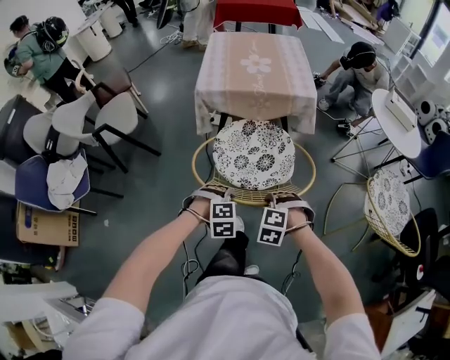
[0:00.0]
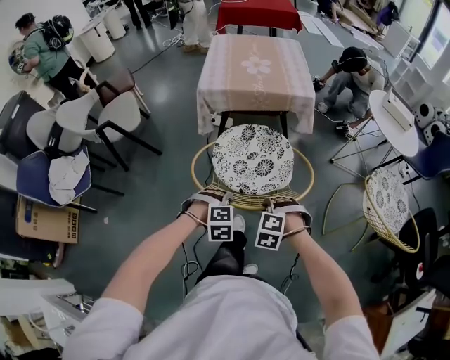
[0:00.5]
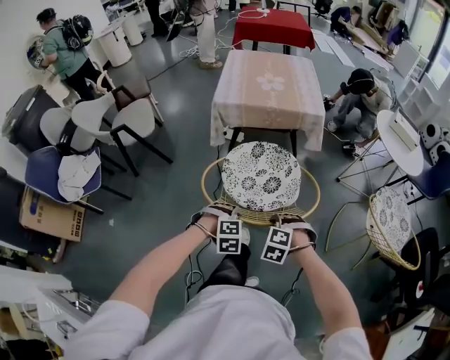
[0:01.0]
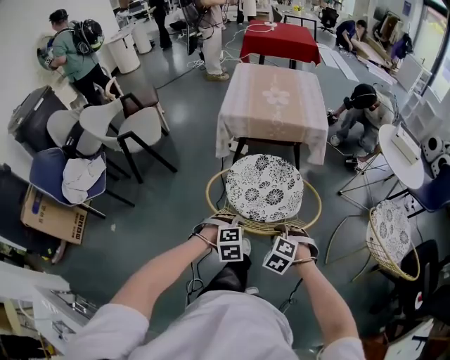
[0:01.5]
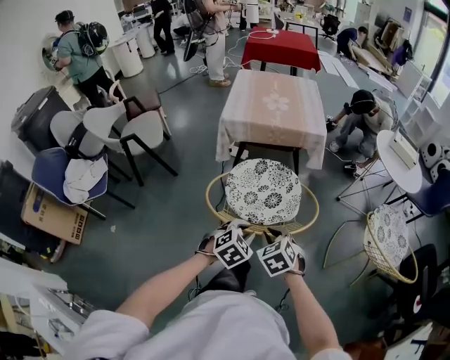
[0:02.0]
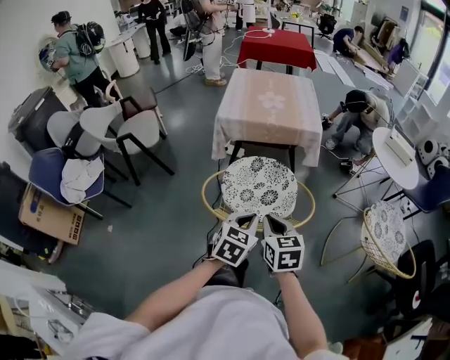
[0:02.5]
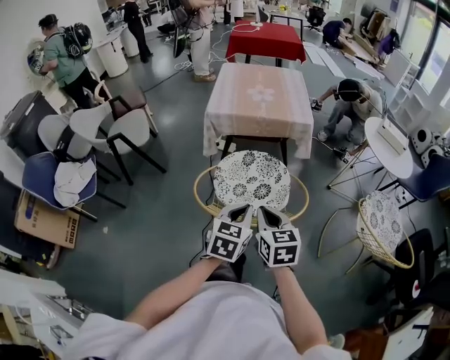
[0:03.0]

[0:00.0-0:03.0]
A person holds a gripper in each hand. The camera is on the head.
0:00.0 to 0:01.5: The two grippers go some 5 cm backward.
0:01.5 to 0:03.0: Both grippers travel together upward, about 15 cm. The left gripper twists approximately 60 degrees counterclockwise, seen from behind. The right gripper twists roughly 60 degrees clockwise, seen from behind, and closes its fingers.

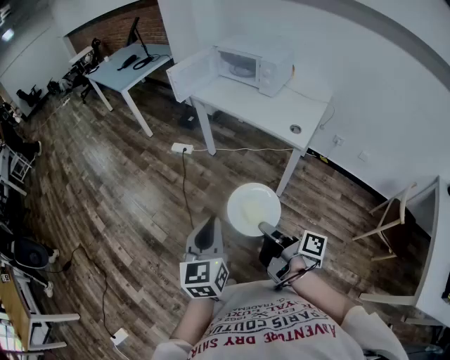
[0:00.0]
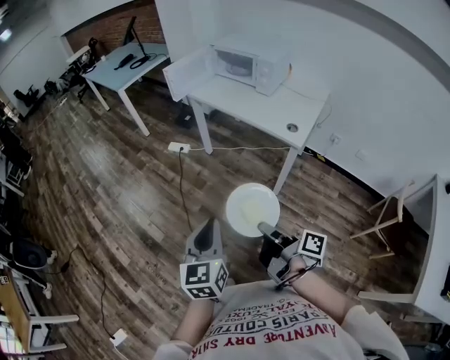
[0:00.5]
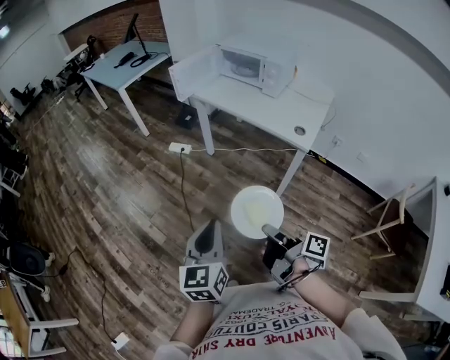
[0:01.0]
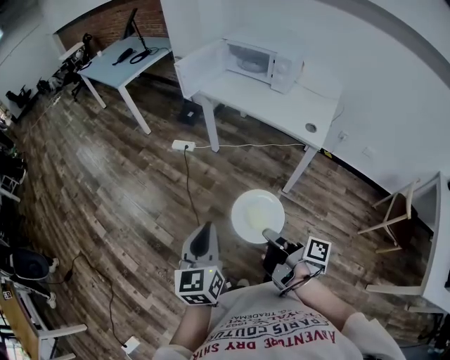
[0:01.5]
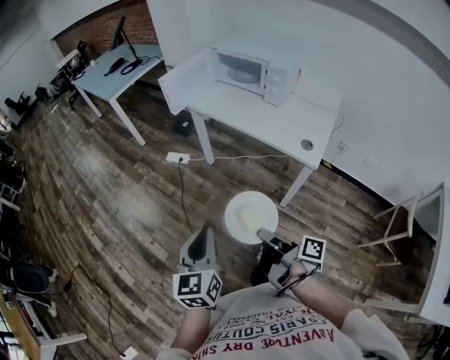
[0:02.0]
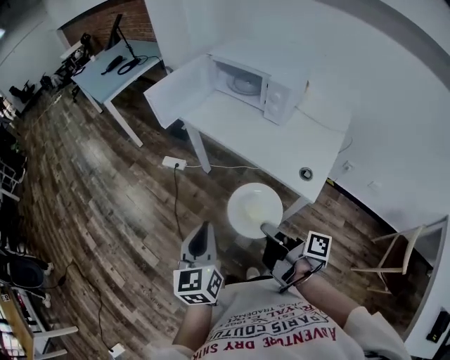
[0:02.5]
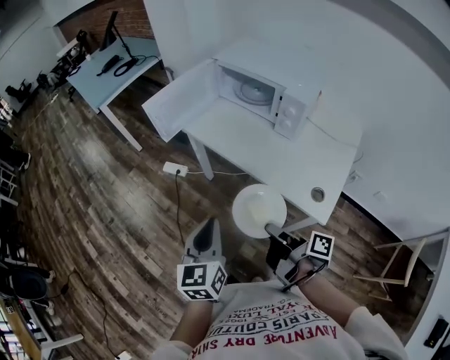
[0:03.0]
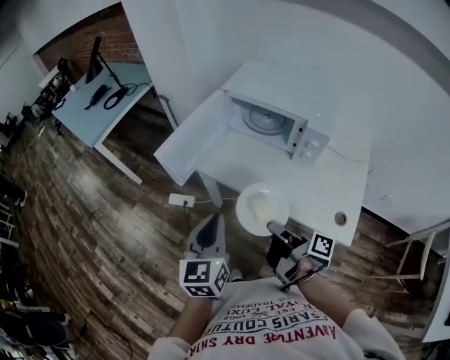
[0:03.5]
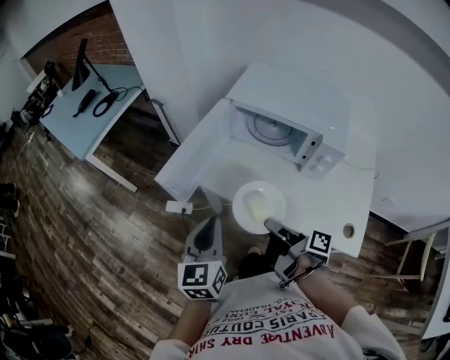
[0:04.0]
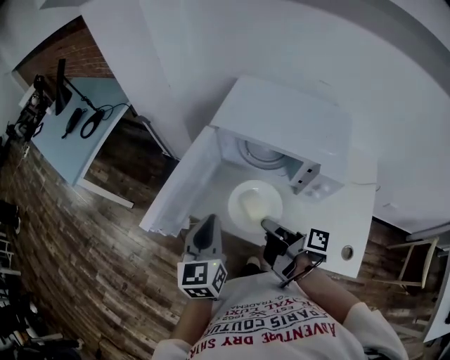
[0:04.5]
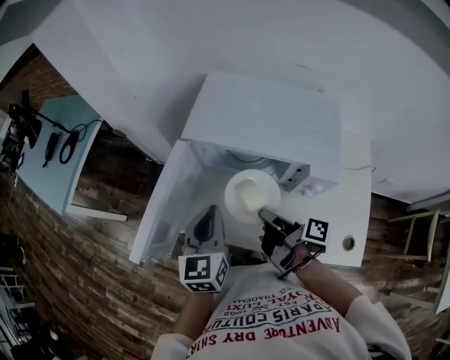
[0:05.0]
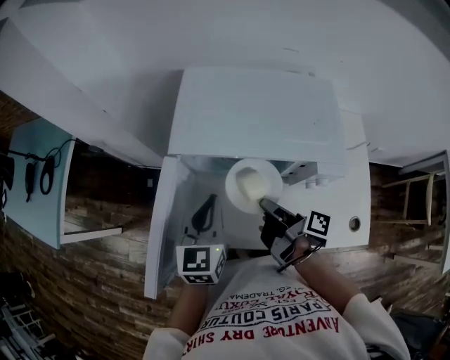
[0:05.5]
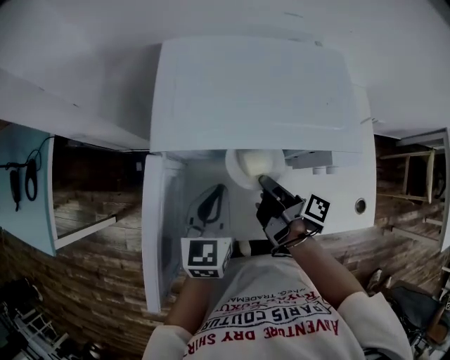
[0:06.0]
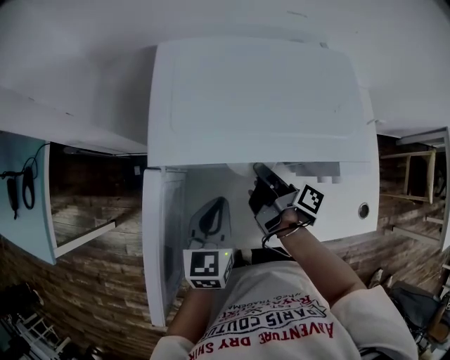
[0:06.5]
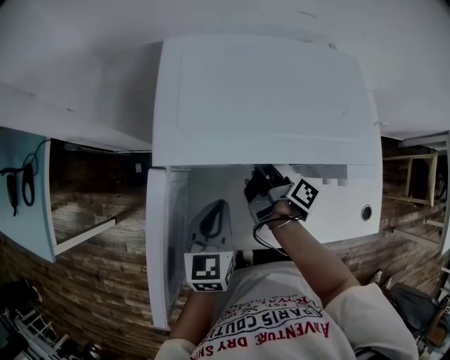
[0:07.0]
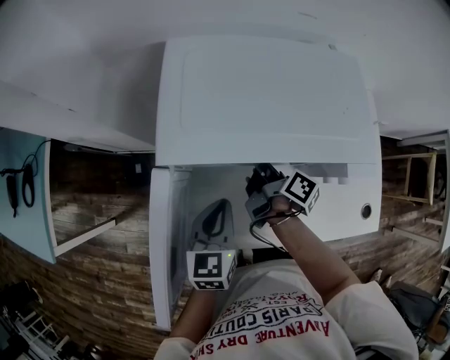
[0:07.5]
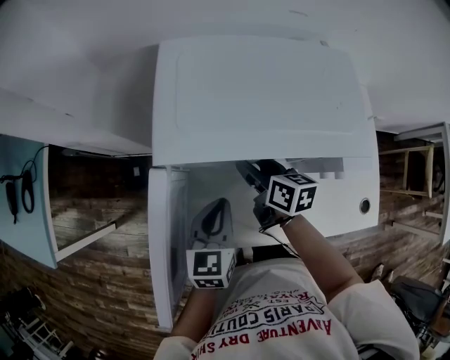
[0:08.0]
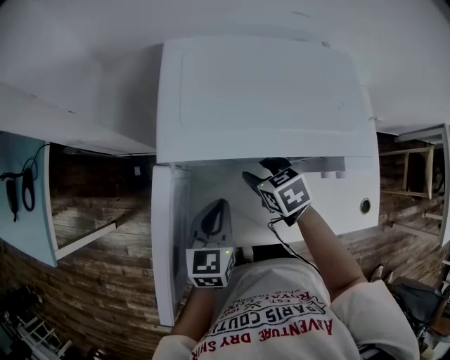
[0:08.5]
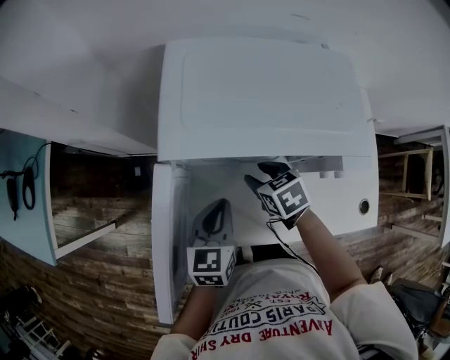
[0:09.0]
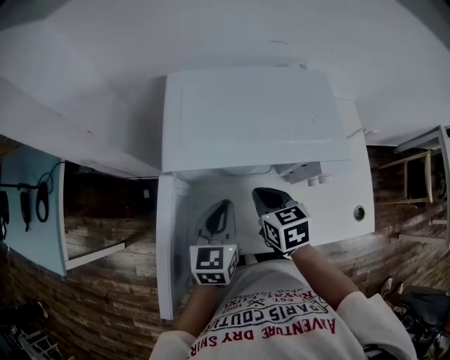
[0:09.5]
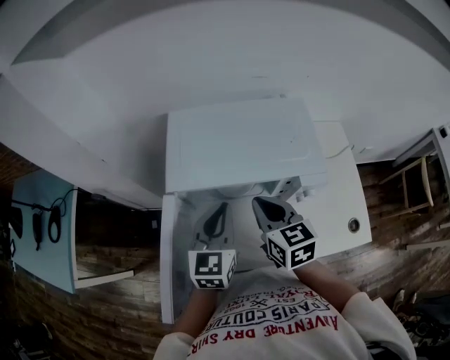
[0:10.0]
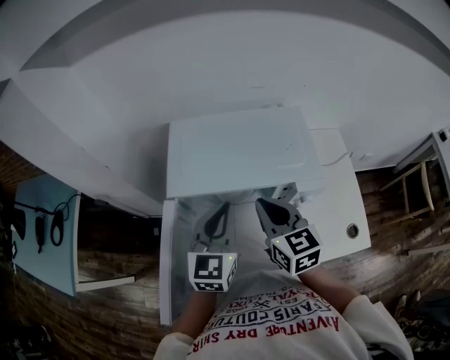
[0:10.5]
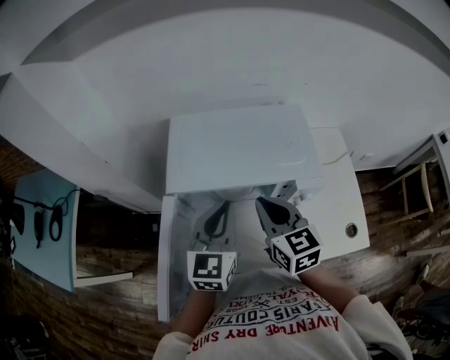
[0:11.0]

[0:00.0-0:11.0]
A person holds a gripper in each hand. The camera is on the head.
0:00.0 to 0:02.0: The left gripper ends up approximately 15 cm from where it was.
0:02.0 to 0:03.5: The left gripper moves about 40 cm.
0:03.5 to 0:05.5: The left gripper ends up approximately 35 cm from where it was, and turns by approximately 30 degrees.
0:05.5 to 0:07.5: The left gripper goes approximately 10 cm downward.
0:09.0 to 0:11.0: The left gripper heads upward, covering some 15 cm, and rotates roughly 20 degrees.

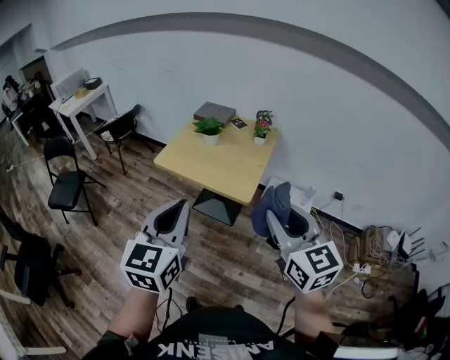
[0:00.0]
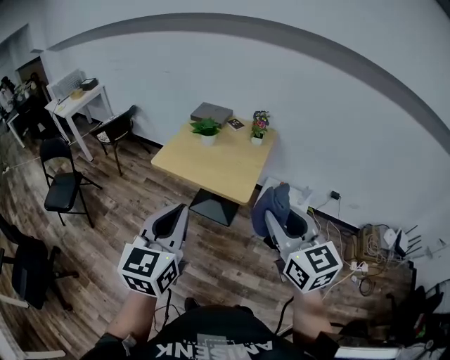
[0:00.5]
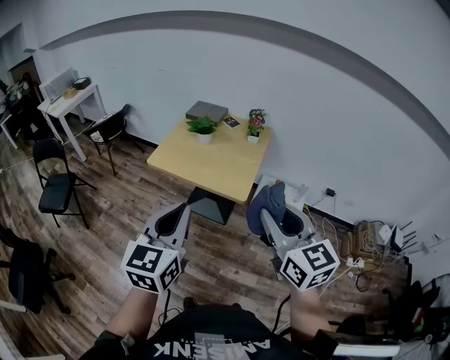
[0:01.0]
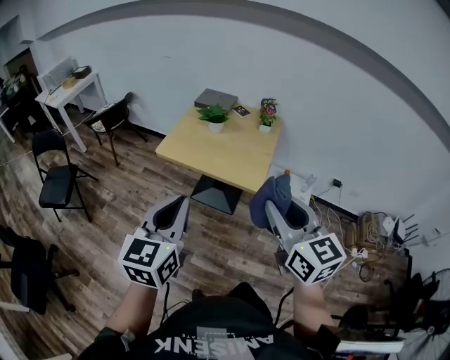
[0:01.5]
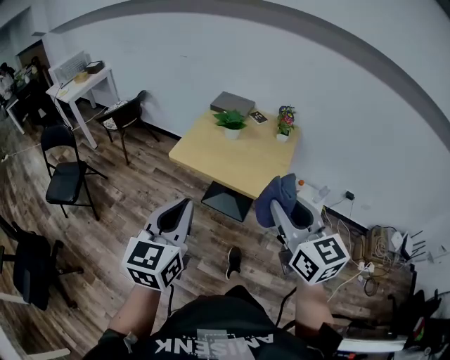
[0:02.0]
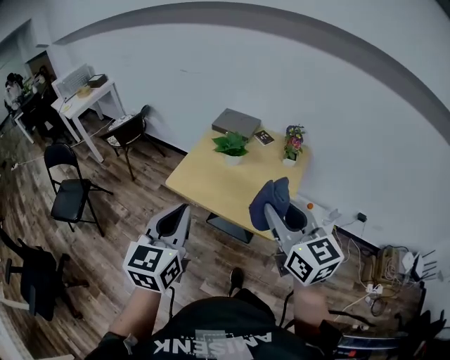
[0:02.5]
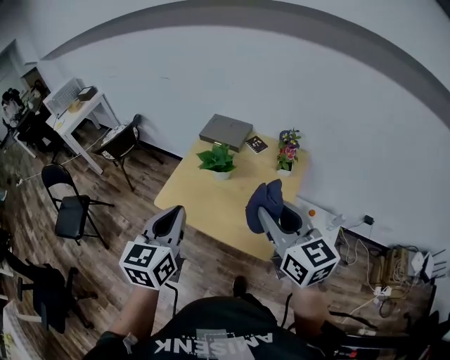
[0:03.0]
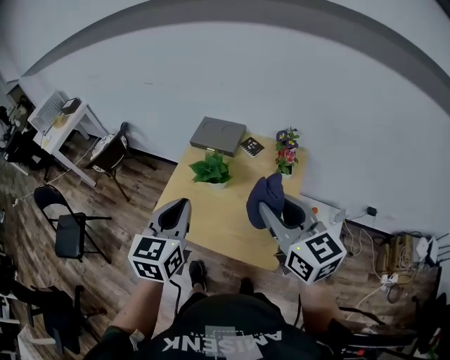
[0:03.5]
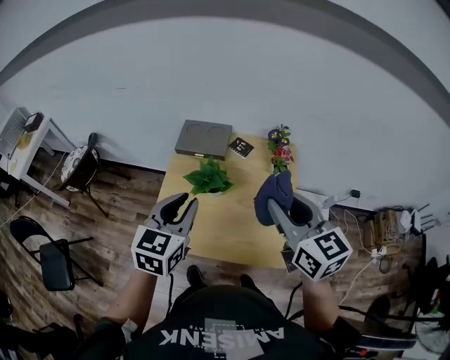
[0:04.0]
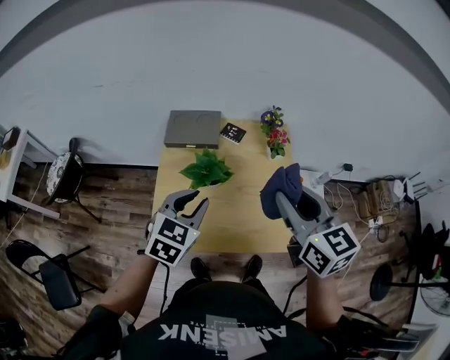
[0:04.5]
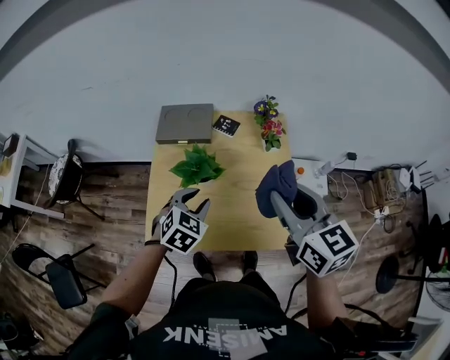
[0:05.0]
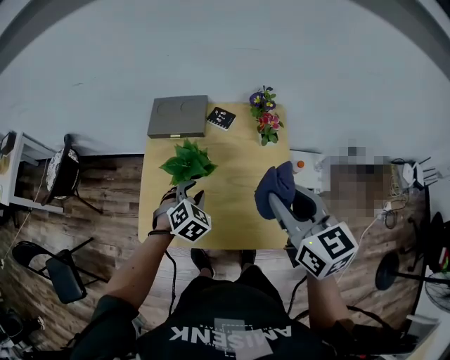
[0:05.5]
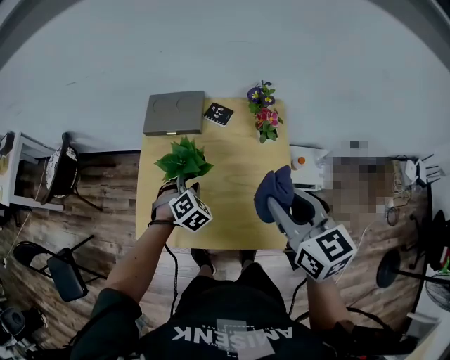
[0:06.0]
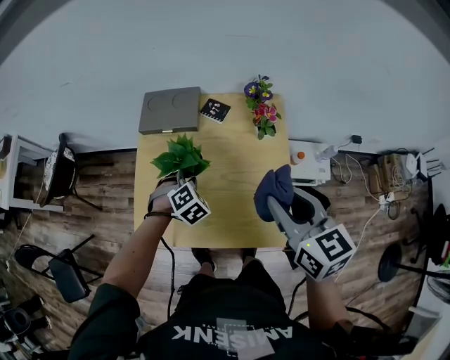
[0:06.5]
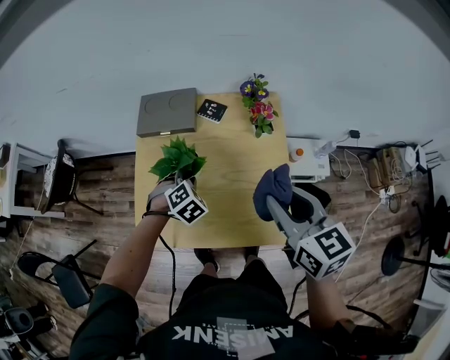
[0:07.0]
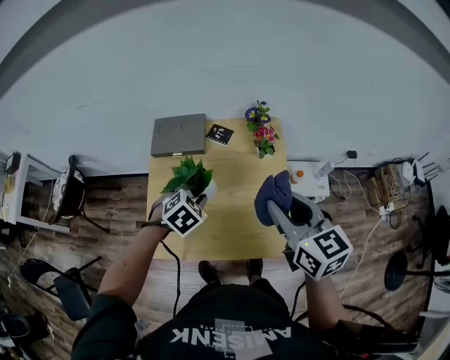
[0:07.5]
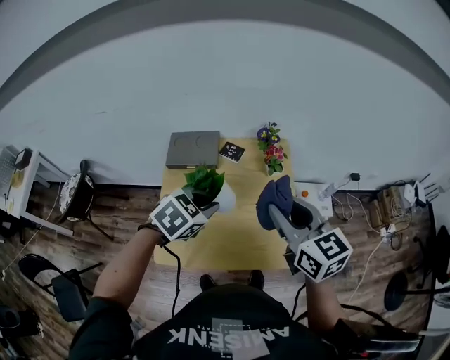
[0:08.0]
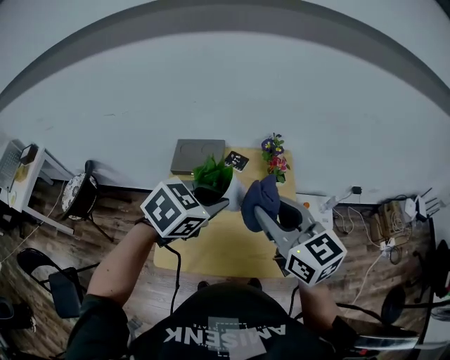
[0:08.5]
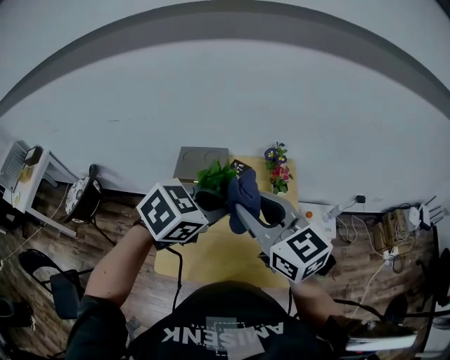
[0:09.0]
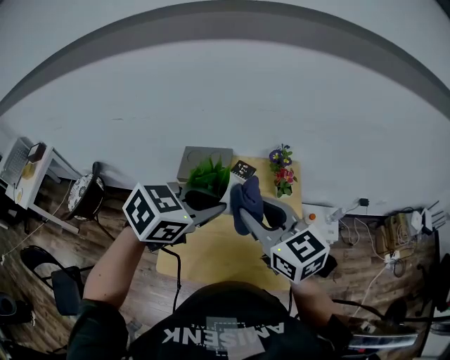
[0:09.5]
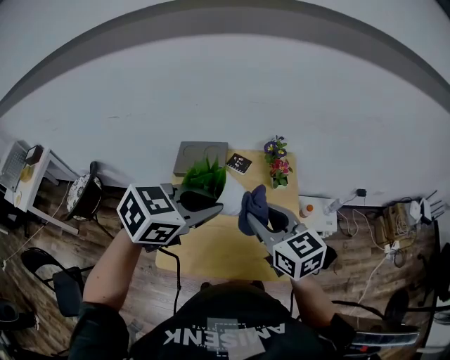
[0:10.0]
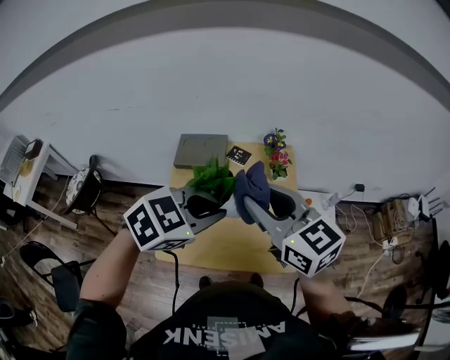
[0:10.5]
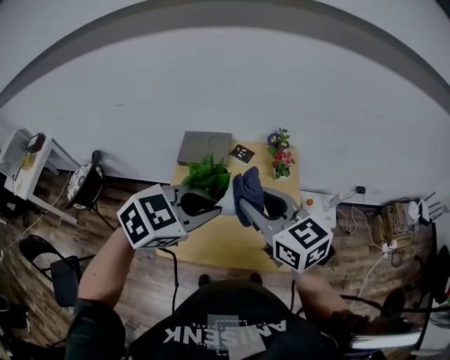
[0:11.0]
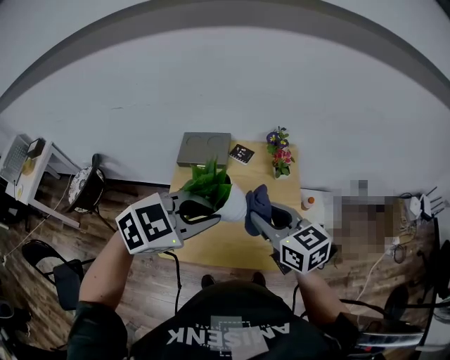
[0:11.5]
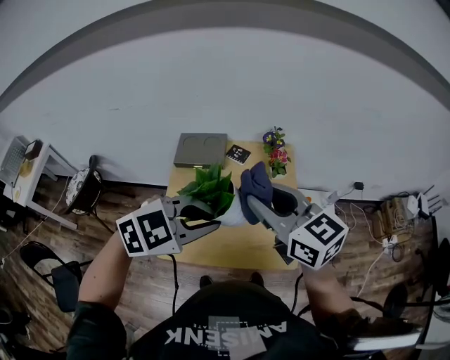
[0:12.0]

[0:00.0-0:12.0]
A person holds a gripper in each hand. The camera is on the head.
0:00.0 to 0:02.0: The right gripper goes roughly 15 cm to the left and forward; the left gripper heads to the left, forward and downward, covering about 15 cm.
0:02.0 to 0:04.0: Both grippers travel together forward, approximately 40 cm. The left gripper turns by approximately 20 degrees.
0:04.0 to 0:06.0: The right gripper goes about 10 cm downward and to the right, while the left gripper goes roughly 30 cm downward and forward, and tilts its fingers approximately 30 degrees downward.
0:06.0 to 0:08.0: The right gripper is displaced upward by some 5 cm. The left gripper heads upward, covering some 20 cm, rotates some 30 degrees, and closes.
0:08.0 to 0:10.0: The left gripper is displaced upward by approximately 15 cm. Meanwhile the right gripper moves to the left, approximately 5 cm.
0:10.0 to 0:12.0: The left gripper is displaced backward by approximately 10 cm, and turns by about 20 degrees. Meanwhile the right gripper moves up and down over some 10 cm, changing direction 2 times.

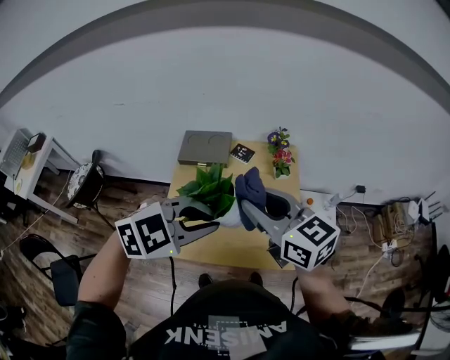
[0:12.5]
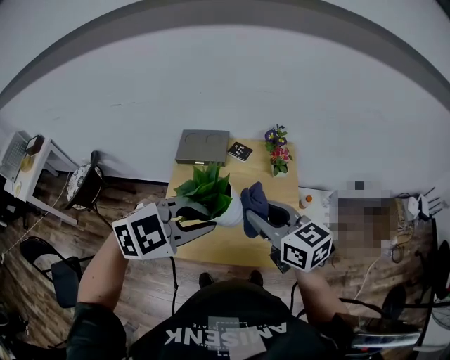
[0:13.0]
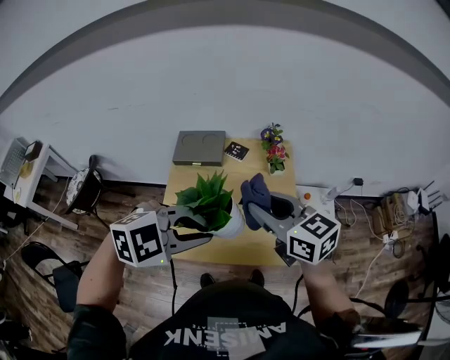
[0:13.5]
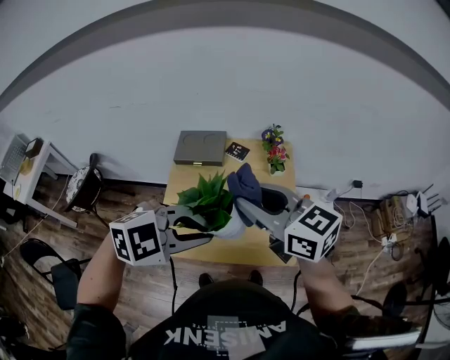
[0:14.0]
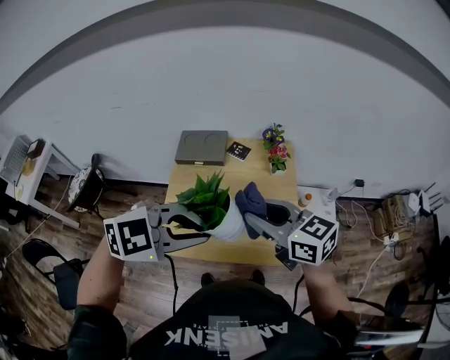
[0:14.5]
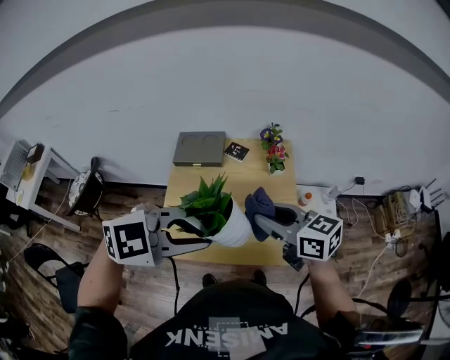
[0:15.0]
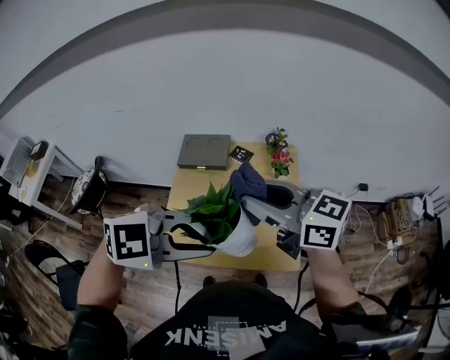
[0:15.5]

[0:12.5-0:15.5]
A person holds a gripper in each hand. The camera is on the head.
0:12.5 to 0:14.0: The right gripper reaches some 5 cm downward, then returns.
0:14.0 to 0:15.5: The right gripper travels downward and back again, roughly 10 cm each way.
